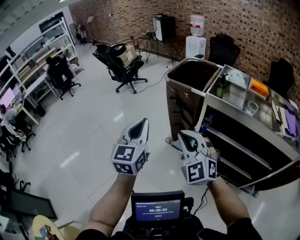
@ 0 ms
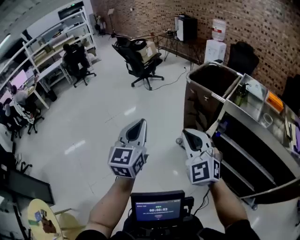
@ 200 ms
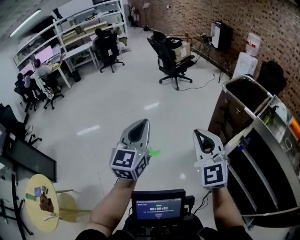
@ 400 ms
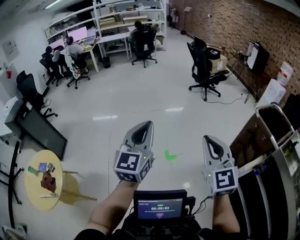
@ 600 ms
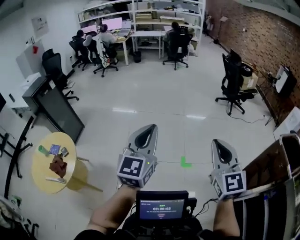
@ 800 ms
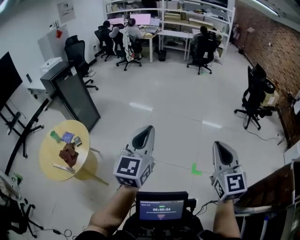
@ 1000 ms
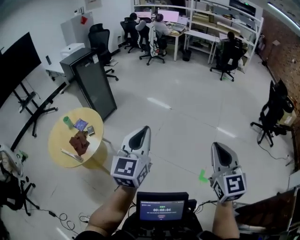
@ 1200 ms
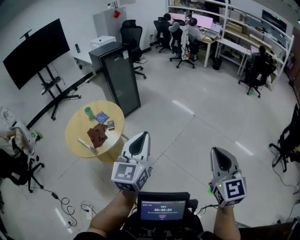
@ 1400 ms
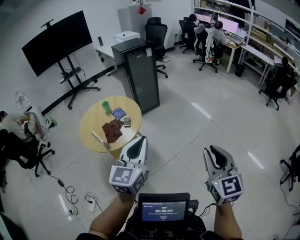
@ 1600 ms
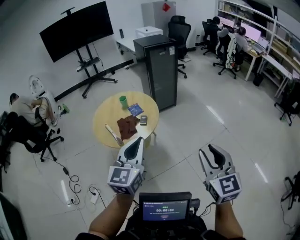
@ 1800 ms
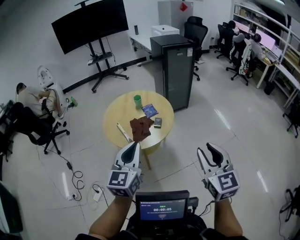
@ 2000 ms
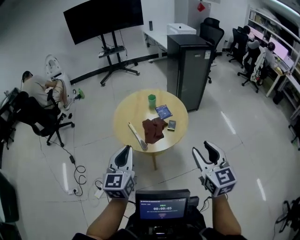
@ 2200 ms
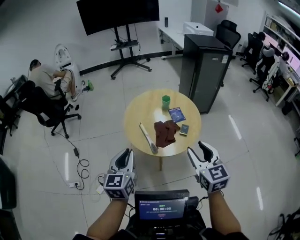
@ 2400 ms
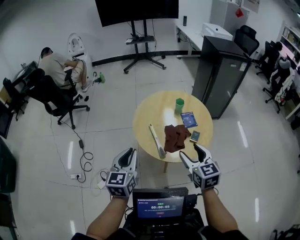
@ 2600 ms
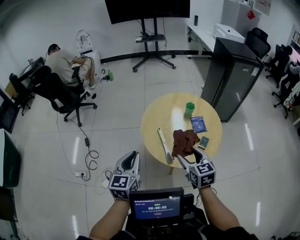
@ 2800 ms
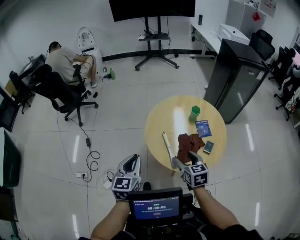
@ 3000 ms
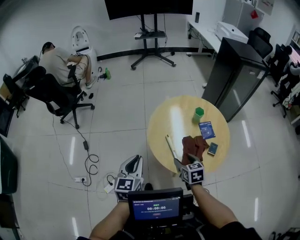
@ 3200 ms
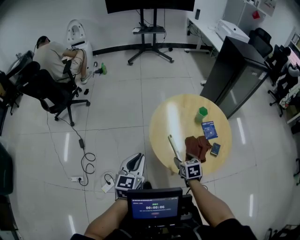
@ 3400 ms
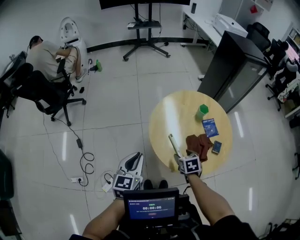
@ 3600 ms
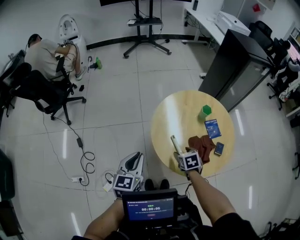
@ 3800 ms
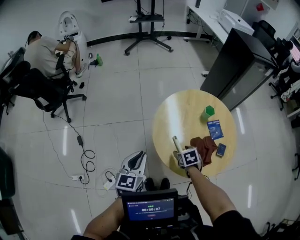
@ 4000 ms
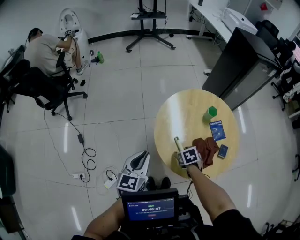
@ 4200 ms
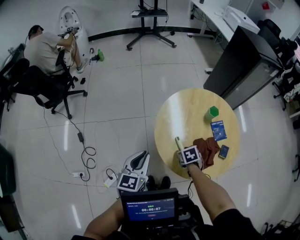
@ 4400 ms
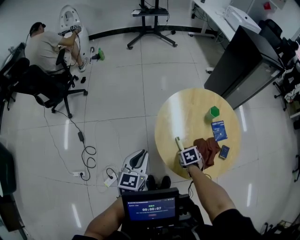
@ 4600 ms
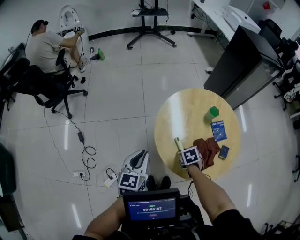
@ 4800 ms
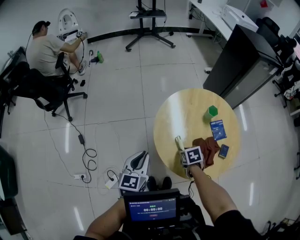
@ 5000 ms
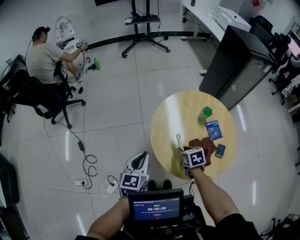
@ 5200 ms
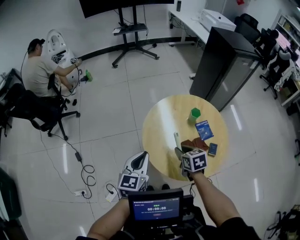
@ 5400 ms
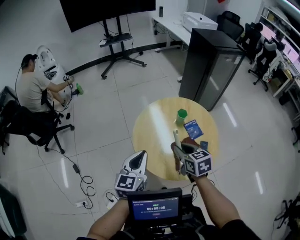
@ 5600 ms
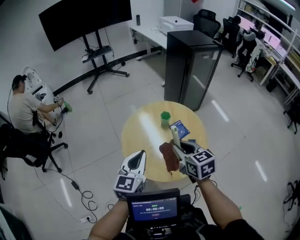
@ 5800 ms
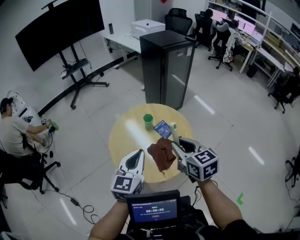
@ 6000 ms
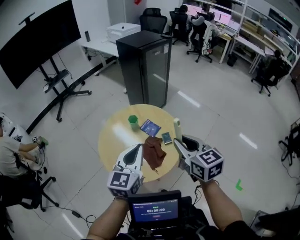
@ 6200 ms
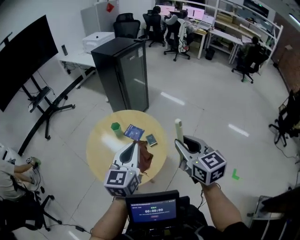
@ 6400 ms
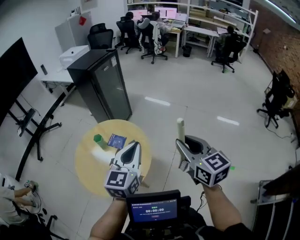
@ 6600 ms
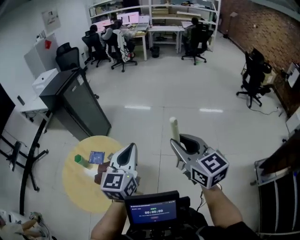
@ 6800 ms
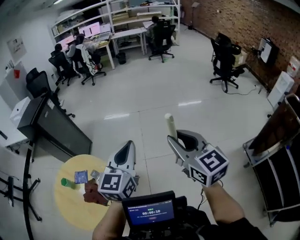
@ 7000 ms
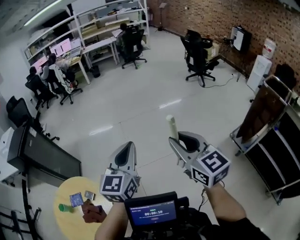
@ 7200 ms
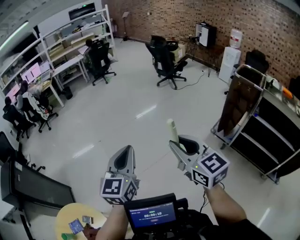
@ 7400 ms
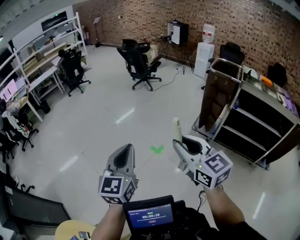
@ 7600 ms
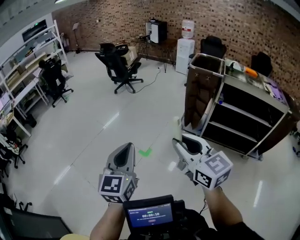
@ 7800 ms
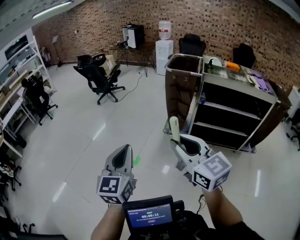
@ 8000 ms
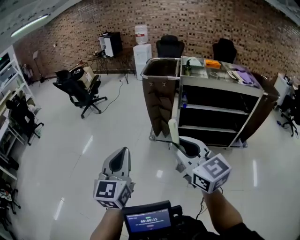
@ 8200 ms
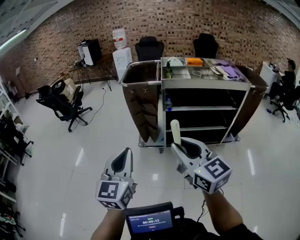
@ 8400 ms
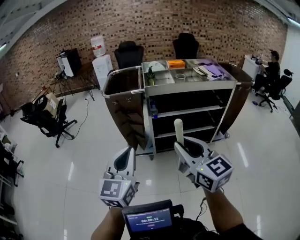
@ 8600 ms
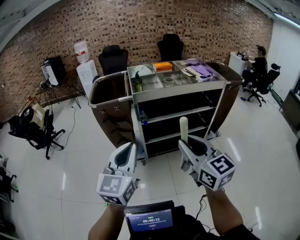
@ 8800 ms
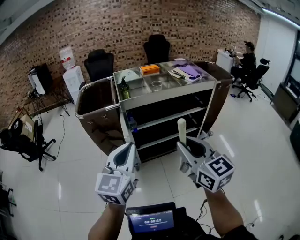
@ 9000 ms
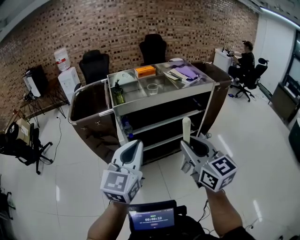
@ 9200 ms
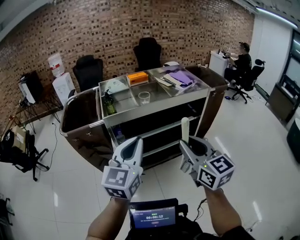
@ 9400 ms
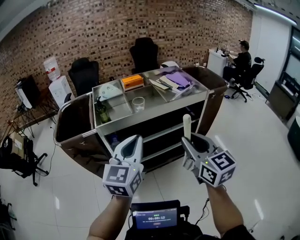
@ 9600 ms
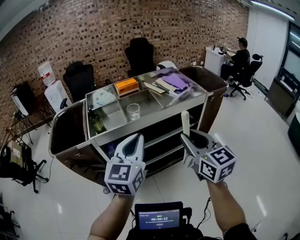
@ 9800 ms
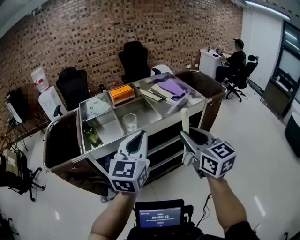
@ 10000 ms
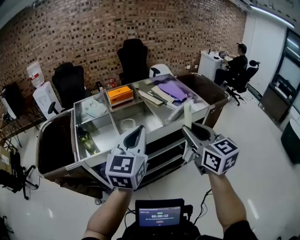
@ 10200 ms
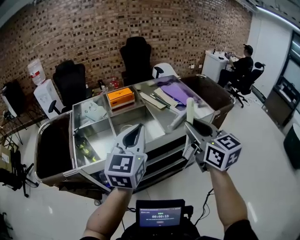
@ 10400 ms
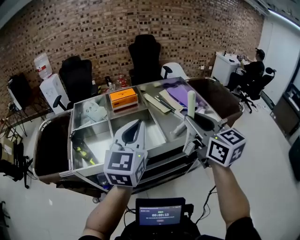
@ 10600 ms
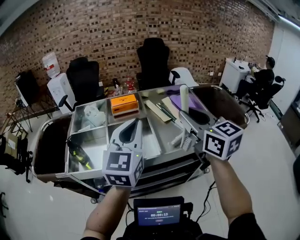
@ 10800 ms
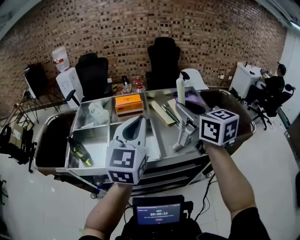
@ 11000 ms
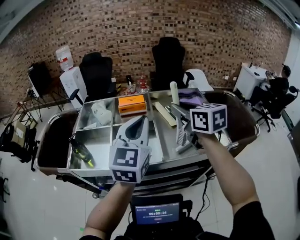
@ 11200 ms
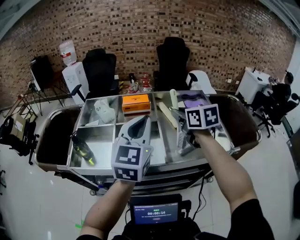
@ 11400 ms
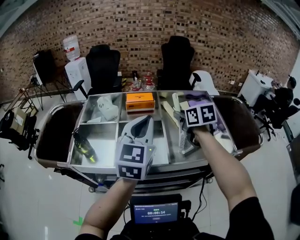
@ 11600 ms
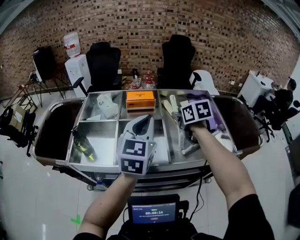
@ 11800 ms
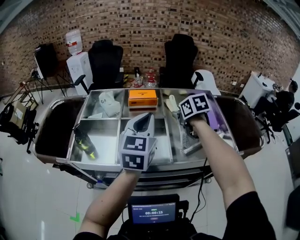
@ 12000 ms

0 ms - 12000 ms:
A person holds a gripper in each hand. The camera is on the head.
0 ms - 1600 ms: Both grippers are carried approximately 1 m. The left gripper rotates about 90 degrees, while the right gripper rotates about 90 degrees.
1600 ms - 3000 ms: The two grippers travel together, roughly 90 cm. The left gripper swivels some 50 degrees. Meanwhile the right gripper rotates some 50 degrees, and opens its fingers.
3000 ms - 4400 ms: The left gripper is displaced forward, to the left and downward by approximately 35 cm, while the right gripper heads forward, downward and to the left, covering some 40 cm, and points its fingers approximately 40 degrees further downward.
4400 ms - 6000 ms: The left gripper ends up roughly 40 cm from where it was, and rotates some 30 degrees, while the right gripper moves upward, approximately 40 cm, tilts its fingers about 50 degrees upward, and closes its fingers.
6000 ms - 7600 ms: The pair of grippers is taken approximately 1 m. The left gripper turns by roughly 90 degrees. Meanwhile the right gripper swivels about 100 degrees.
7600 ms - 9000 ms: The pair of grippers is taken about 1 m. The right gripper turns by some 60 degrees. The left gripper rotates approximately 60 degrees.
9000 ms - 10400 ms: The two grippers travel together, forward, approximately 80 cm.
10400 ms - 12000 ms: The left gripper travels forward and to the right by some 35 cm, and rotates some 20 degrees. Meanwhile the right gripper goes roughly 50 cm forward, and points its fingers roughly 40 degrees further downward.

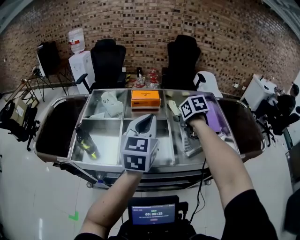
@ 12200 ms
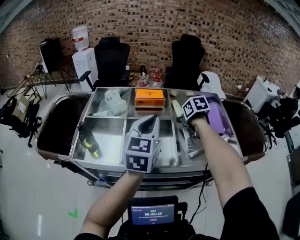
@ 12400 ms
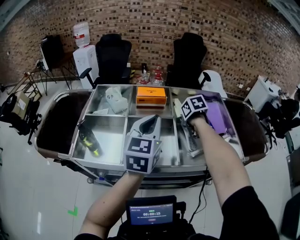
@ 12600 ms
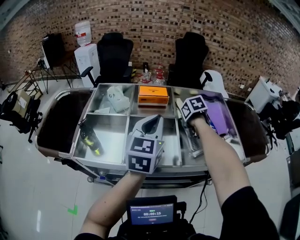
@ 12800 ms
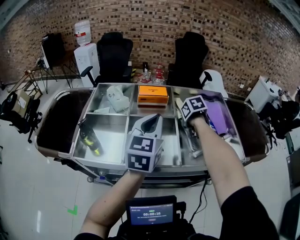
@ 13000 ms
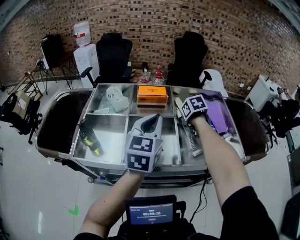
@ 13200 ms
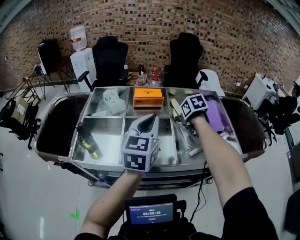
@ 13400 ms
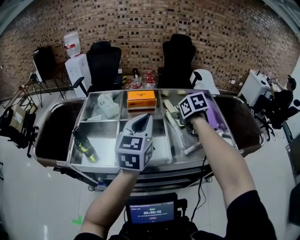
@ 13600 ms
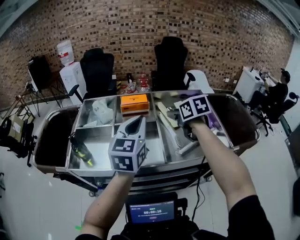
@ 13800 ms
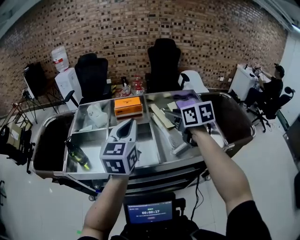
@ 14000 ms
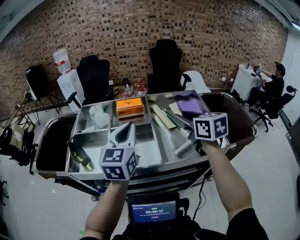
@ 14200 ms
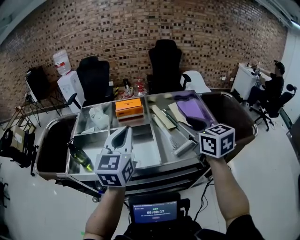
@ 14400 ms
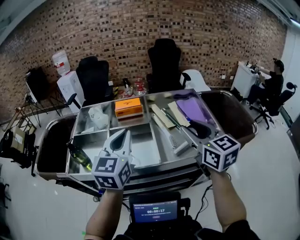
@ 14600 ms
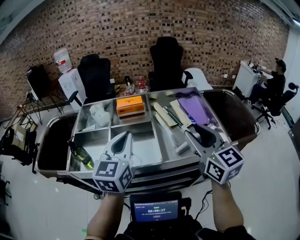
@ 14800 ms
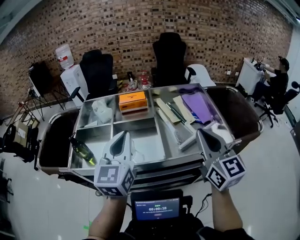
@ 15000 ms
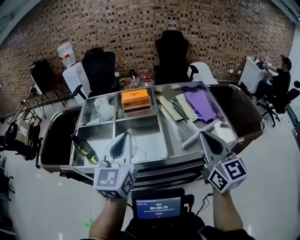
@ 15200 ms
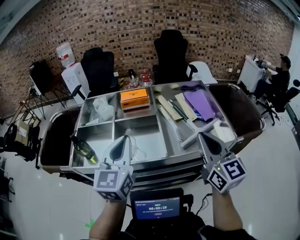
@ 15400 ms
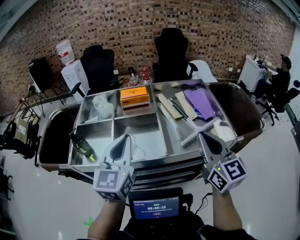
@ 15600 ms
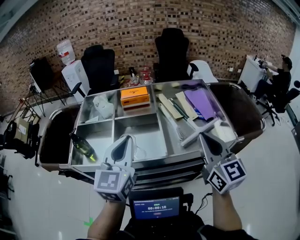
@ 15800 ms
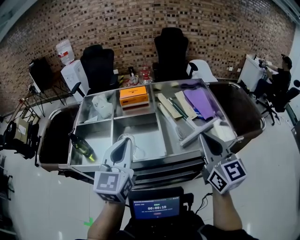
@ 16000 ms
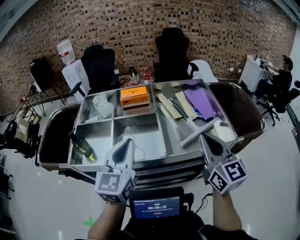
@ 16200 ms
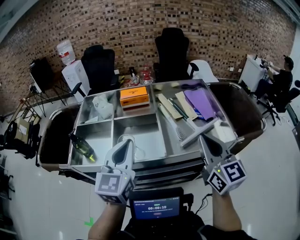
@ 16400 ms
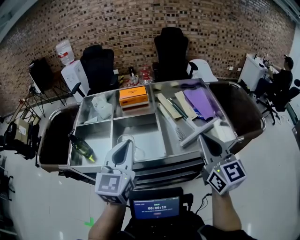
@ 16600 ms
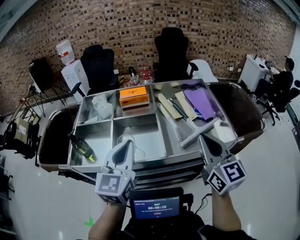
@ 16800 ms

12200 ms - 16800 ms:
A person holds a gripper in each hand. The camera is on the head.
12200 ms - 13800 ms: The right gripper moves upward, some 5 cm.
13800 ms - 15200 ms: The right gripper moves backward, some 20 cm, tilts its fingers roughly 40 degrees upward, and closes up; the left gripper heads backward, covering approximately 10 cm.
15200 ms - 16800 ms: The grippers make only small movements.

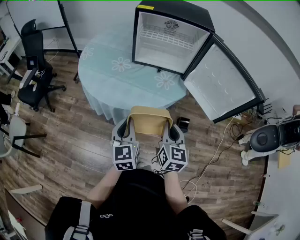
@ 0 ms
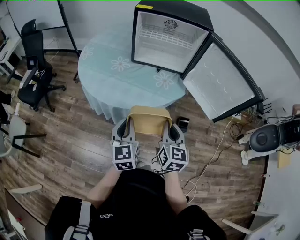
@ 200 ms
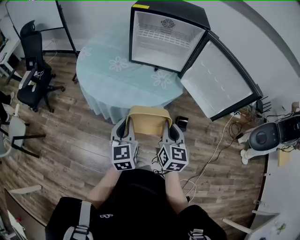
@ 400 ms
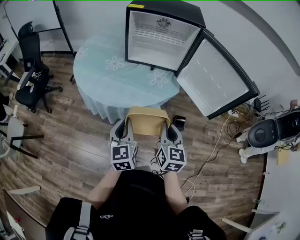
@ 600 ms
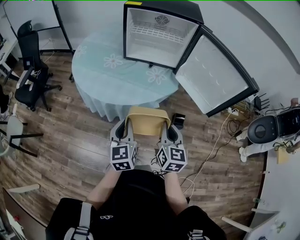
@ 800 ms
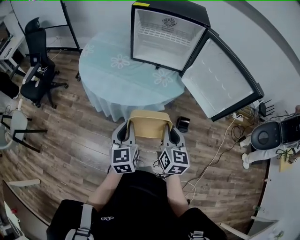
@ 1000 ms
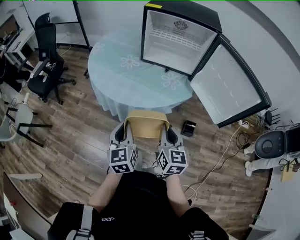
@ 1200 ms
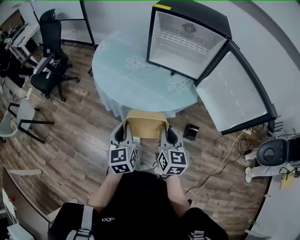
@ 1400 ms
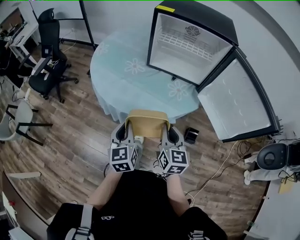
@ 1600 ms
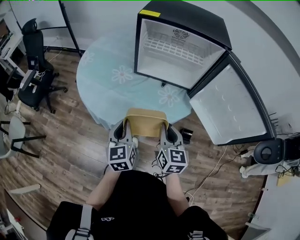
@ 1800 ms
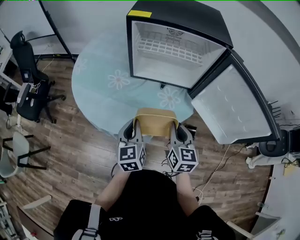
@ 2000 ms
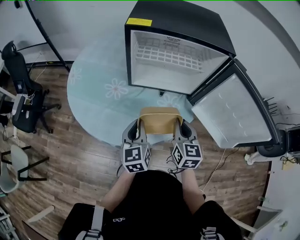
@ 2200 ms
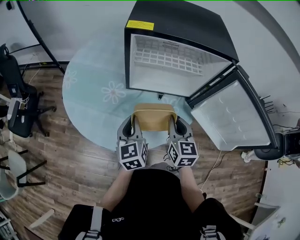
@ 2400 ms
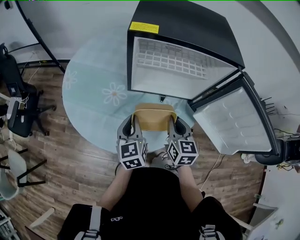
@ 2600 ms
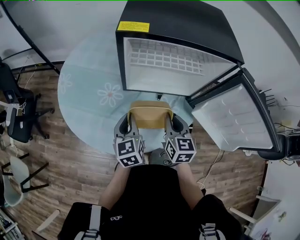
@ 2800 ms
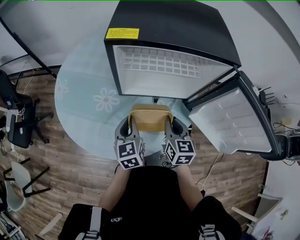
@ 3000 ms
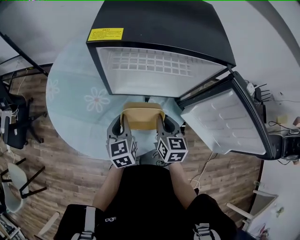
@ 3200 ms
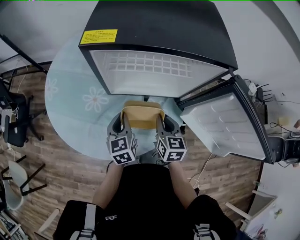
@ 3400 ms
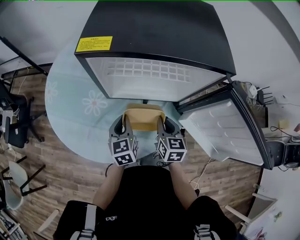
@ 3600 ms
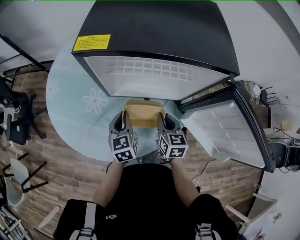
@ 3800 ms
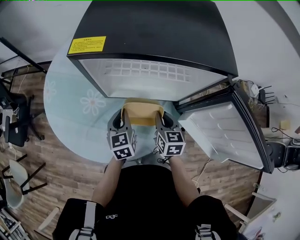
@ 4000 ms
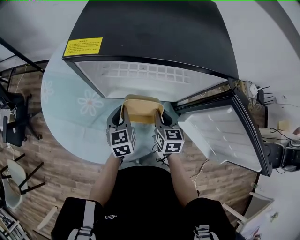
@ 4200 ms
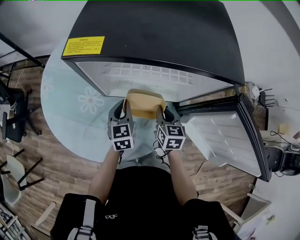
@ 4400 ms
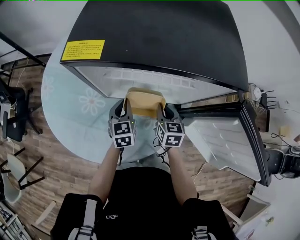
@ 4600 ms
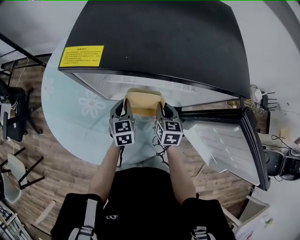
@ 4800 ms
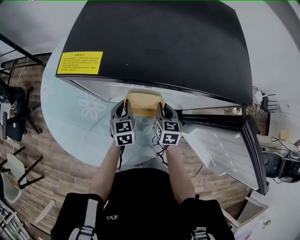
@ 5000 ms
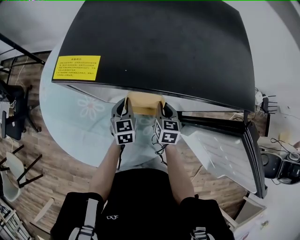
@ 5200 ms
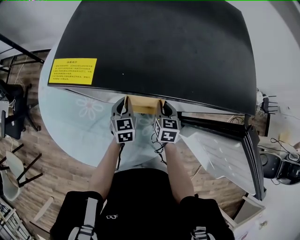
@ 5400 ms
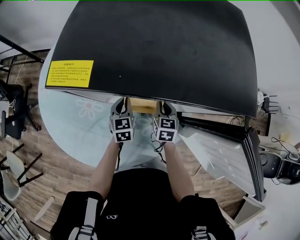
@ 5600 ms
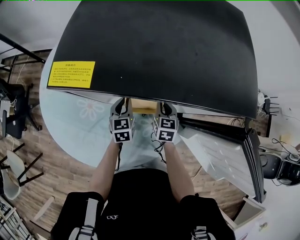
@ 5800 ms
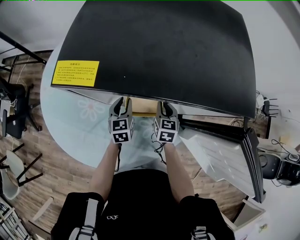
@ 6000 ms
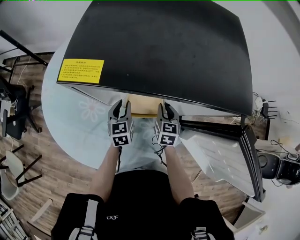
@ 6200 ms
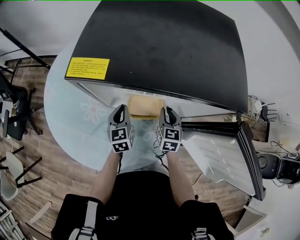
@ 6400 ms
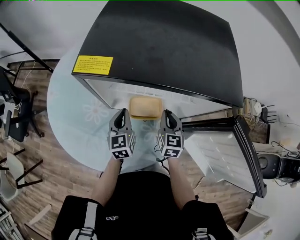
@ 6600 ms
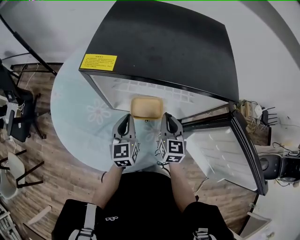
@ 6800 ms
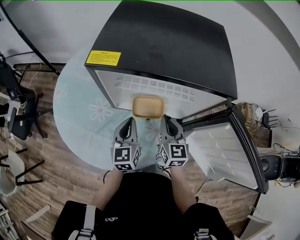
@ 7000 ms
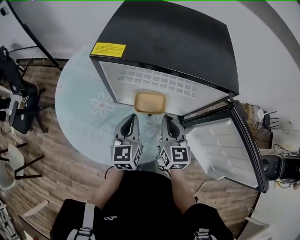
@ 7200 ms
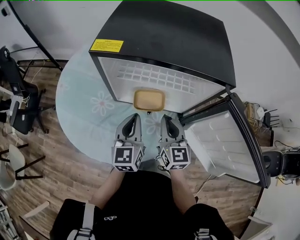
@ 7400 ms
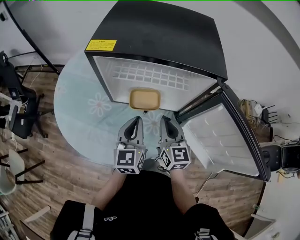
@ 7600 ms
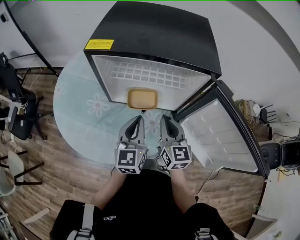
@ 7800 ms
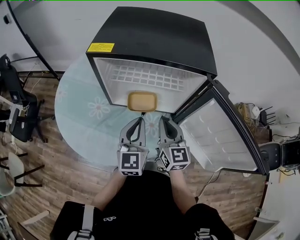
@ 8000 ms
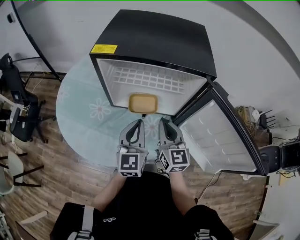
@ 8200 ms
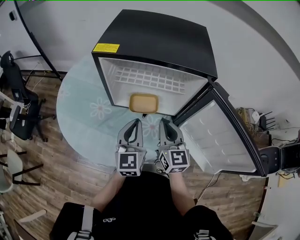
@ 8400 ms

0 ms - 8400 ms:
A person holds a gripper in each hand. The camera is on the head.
0 ms - 1400 ms: There are only small adjustments of the grippers.
1400 ms - 2800 ms: The two grippers go some 35 cm forward.
2800 ms - 4200 ms: The left gripper heads forward and to the right, covering approximately 15 cm; the right gripper shifts some 15 cm to the right, forward and downward.
4200 ms - 5600 ms: The two grippers go some 15 cm forward and downward.
5600 ms - 7000 ms: The grippers both shift upward and backward by about 20 cm. The right gripper swivels about 20 degrees. The left gripper opens and closes again.
7000 ms - 8400 ms: The right gripper moves backward and upward, approximately 10 cm. The left gripper shifts approximately 10 cm upward and backward.
